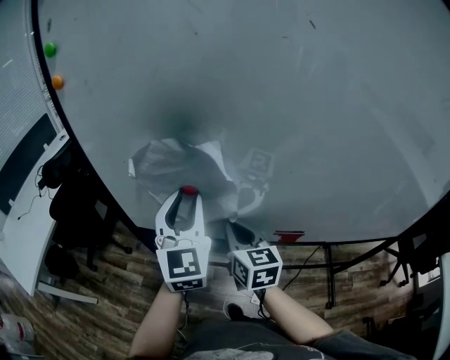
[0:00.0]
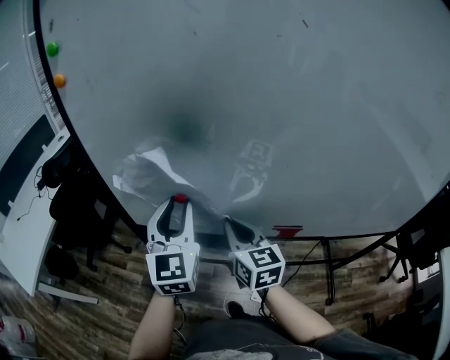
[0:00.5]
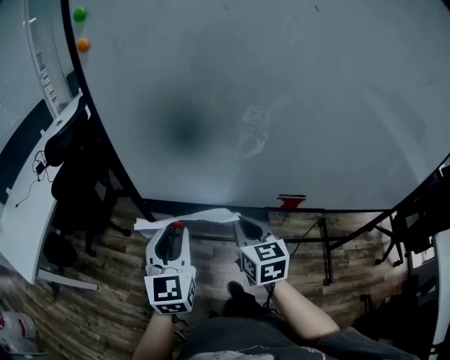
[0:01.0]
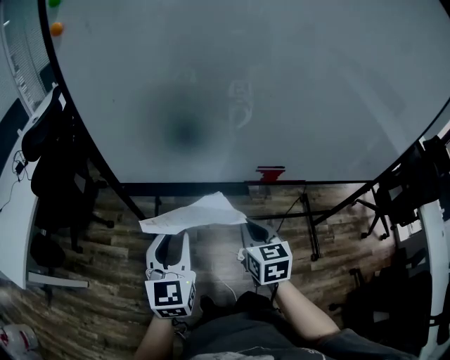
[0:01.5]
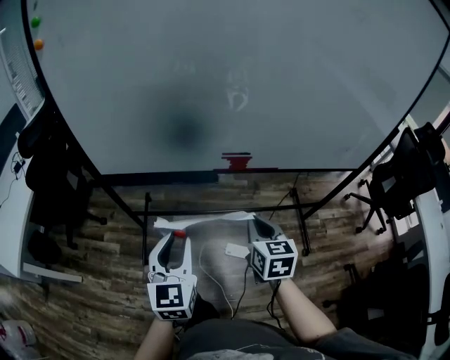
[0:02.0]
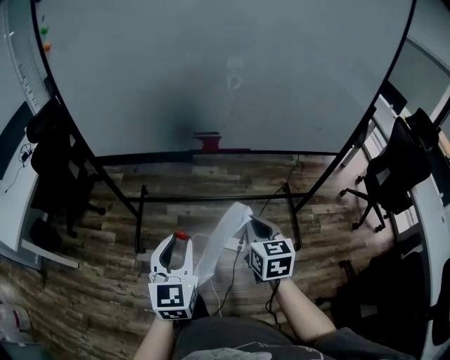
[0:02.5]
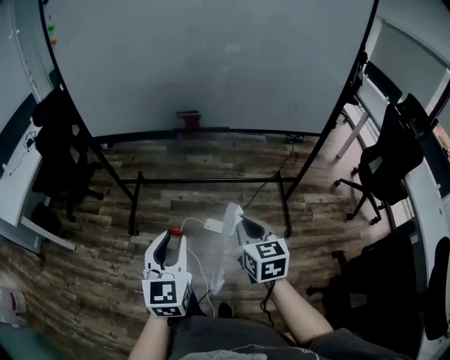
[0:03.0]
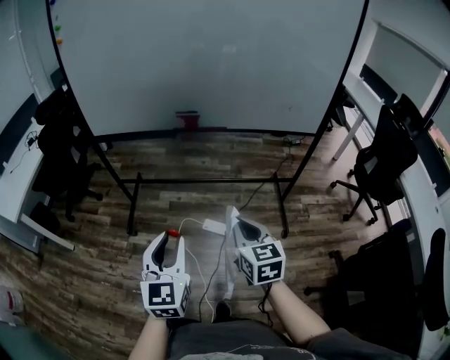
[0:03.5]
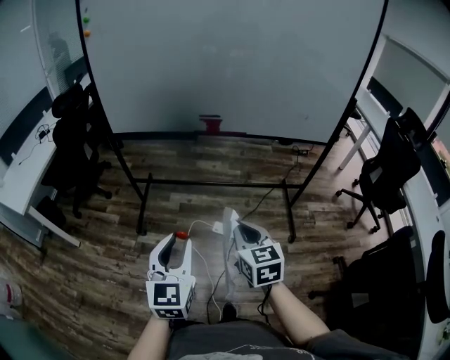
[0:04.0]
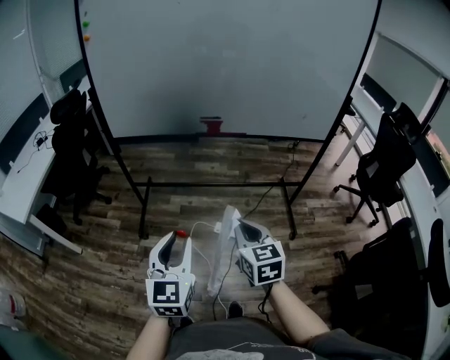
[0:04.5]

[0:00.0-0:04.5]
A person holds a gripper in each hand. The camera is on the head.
0:00.0 to 0:02.0: The right gripper travels backward and to the right by roughly 30 cm, and turns by some 20 degrees. Meanwhile the left gripper moves backward and downward, approximately 30 cm, and turns by some 20 degrees.
0:02.0 to 0:04.5: Both grippers travel together backward, roughly 30 cm.

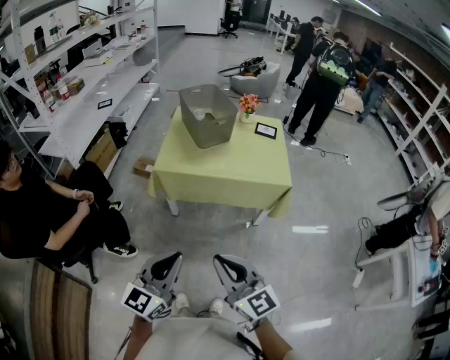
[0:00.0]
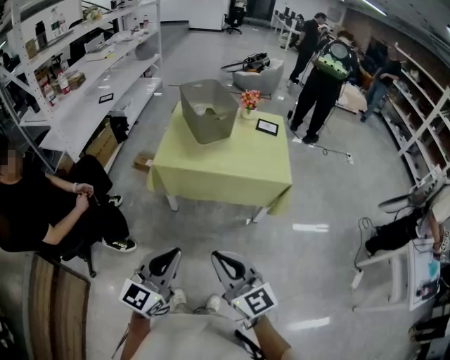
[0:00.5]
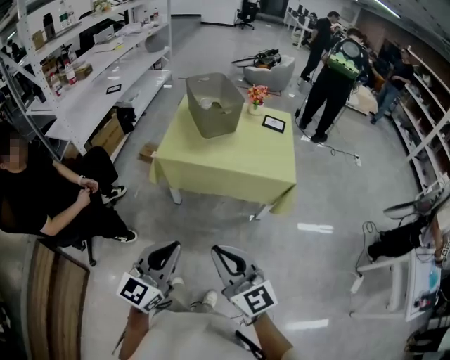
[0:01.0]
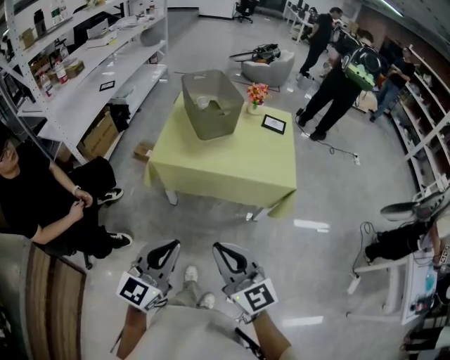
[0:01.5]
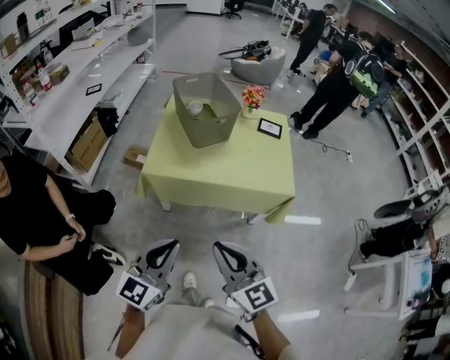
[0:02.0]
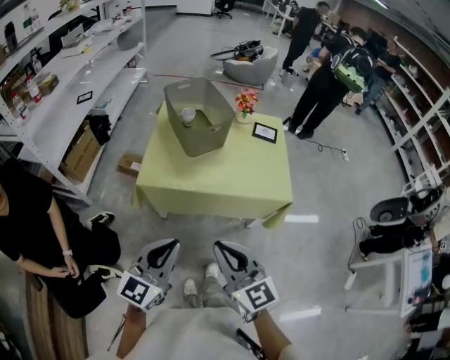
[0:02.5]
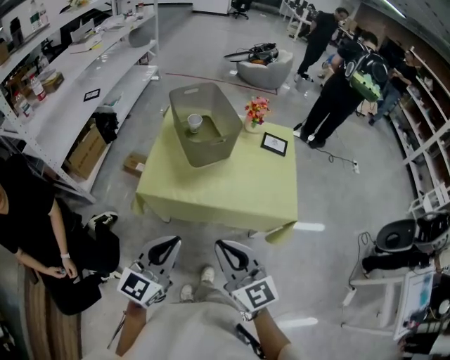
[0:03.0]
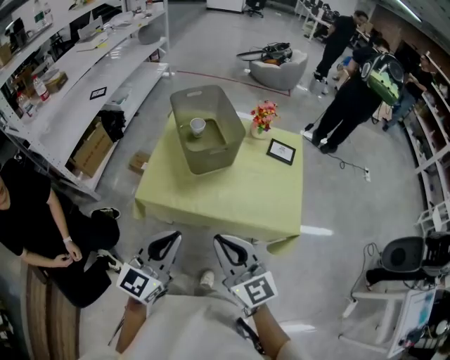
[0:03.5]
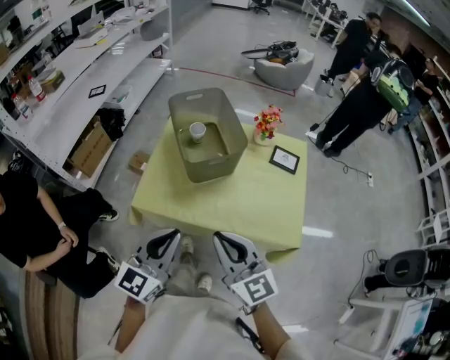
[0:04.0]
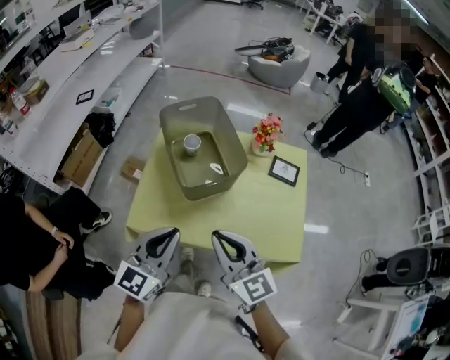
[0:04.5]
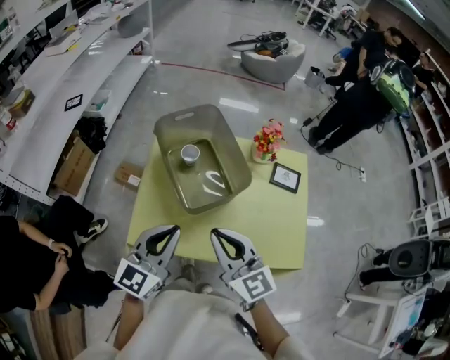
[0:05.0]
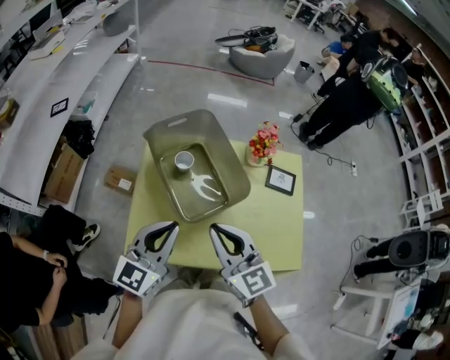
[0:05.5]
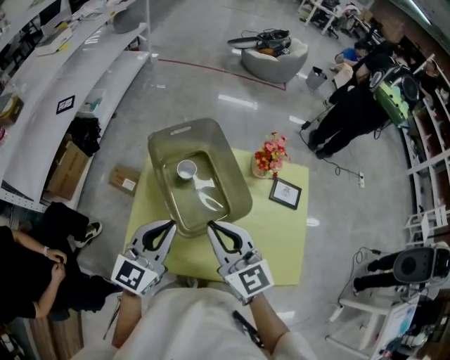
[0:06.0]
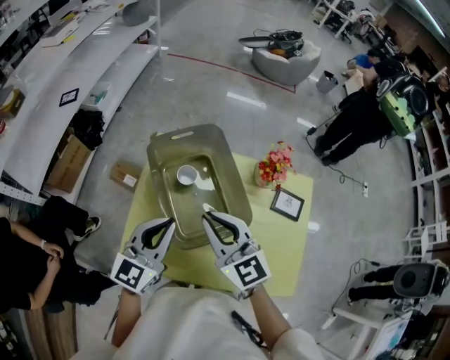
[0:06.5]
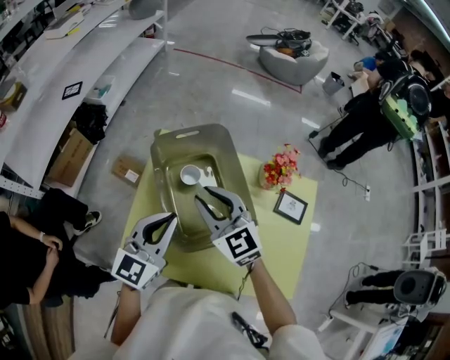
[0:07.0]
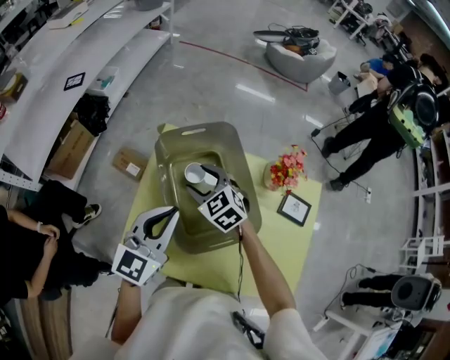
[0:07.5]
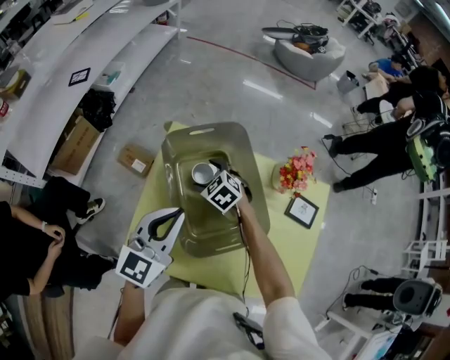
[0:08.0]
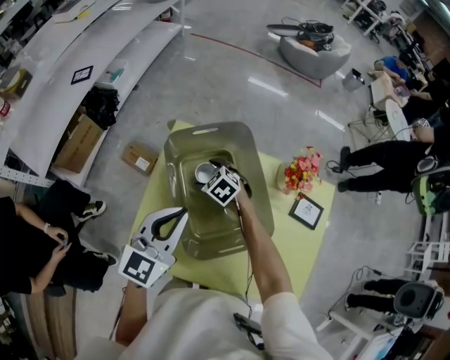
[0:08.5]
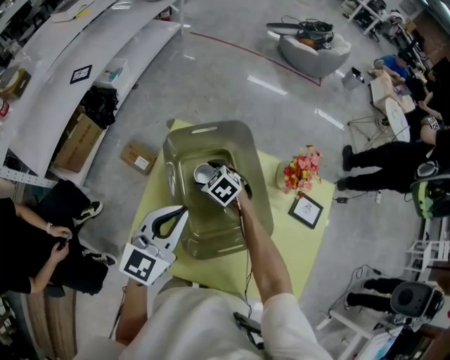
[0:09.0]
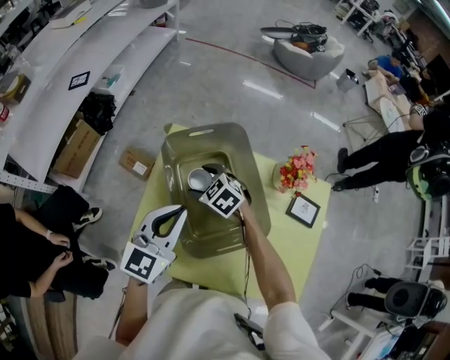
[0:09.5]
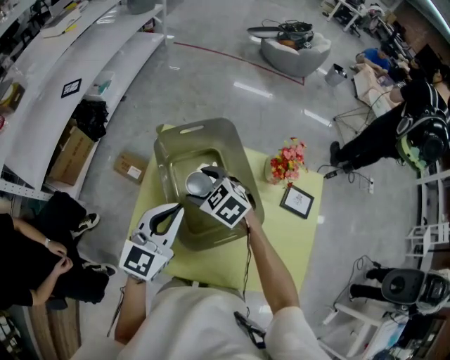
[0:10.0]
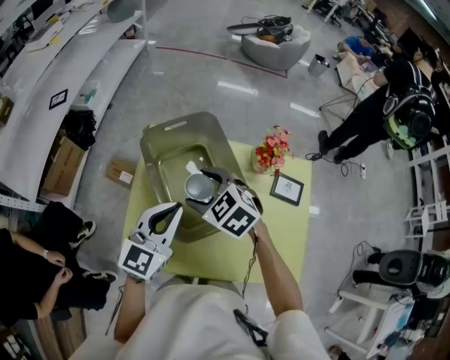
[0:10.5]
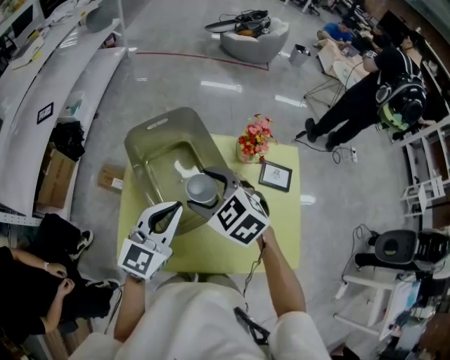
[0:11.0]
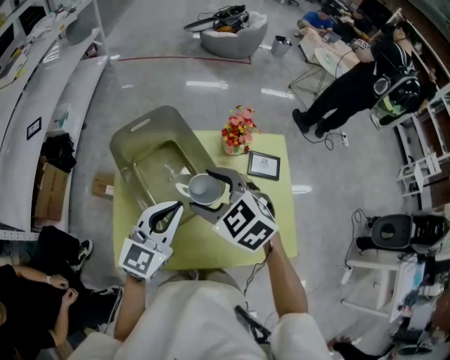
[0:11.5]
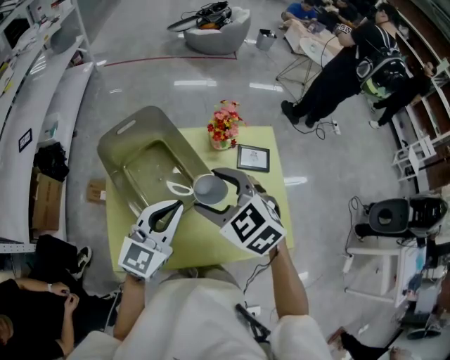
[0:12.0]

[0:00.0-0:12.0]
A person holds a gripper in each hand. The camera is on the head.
0:00.0 to 0:02.0: The two grippers go roughly 15 cm forward.
0:02.0 to 0:04.0: The grippers both shift forward by approximately 30 cm.
0:04.0 to 0:06.0: Both grippers travel together forward, about 30 cm.
0:06.0 to 0:08.0: The right gripper moves downward and forward, approximately 35 cm, tilts its fingers some 50 degrees downward, and opens. Meanwhile the left gripper is displaced forward by approximately 10 cm.
0:08.0 to 0:10.0: The right gripper heads upward and backward, covering some 10 cm.
0:10.0 to 0:12.0: The left gripper travels to the right and backward by roughly 15 cm, and rotates about 20 degrees. Meanwhile the right gripper travels to the right, upward and backward by roughly 25 cm, and rotates roughly 20 degrees.

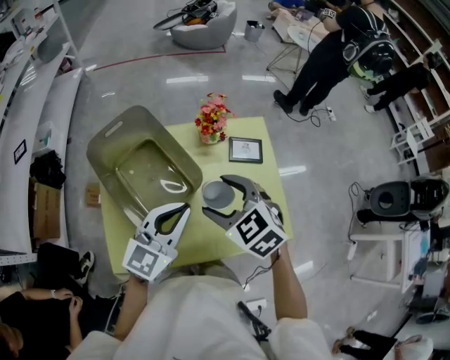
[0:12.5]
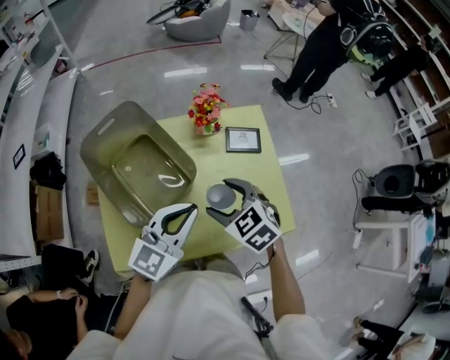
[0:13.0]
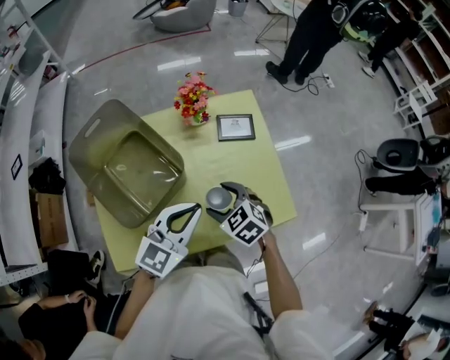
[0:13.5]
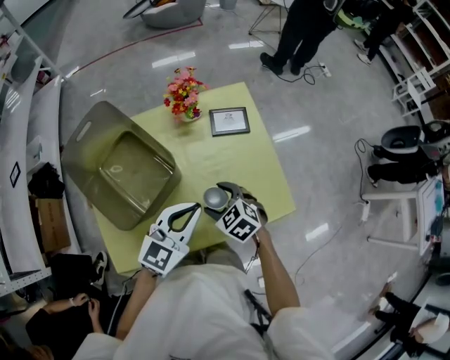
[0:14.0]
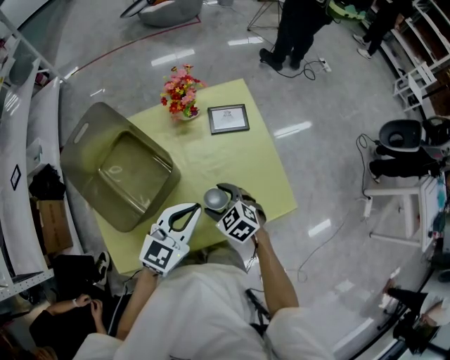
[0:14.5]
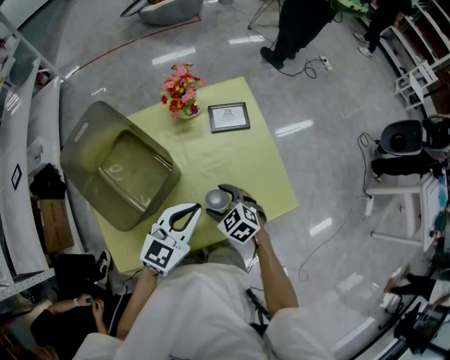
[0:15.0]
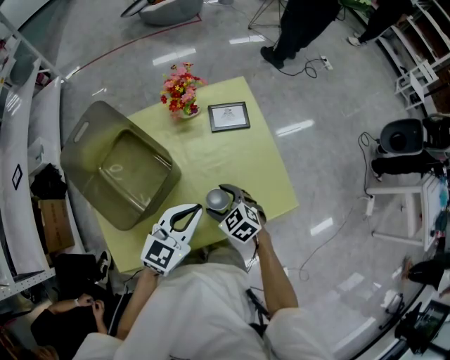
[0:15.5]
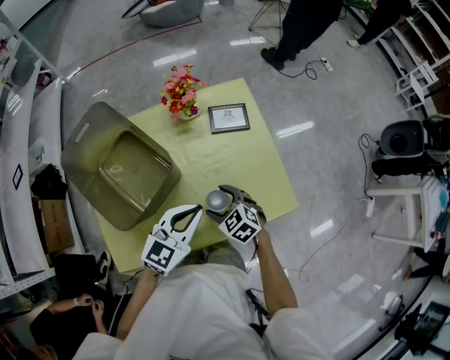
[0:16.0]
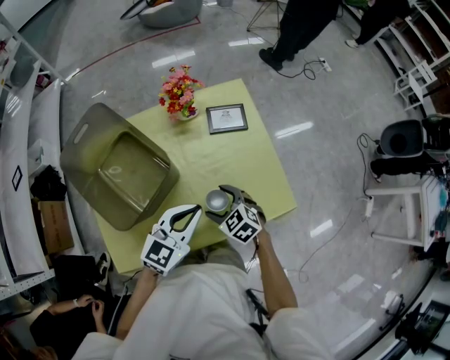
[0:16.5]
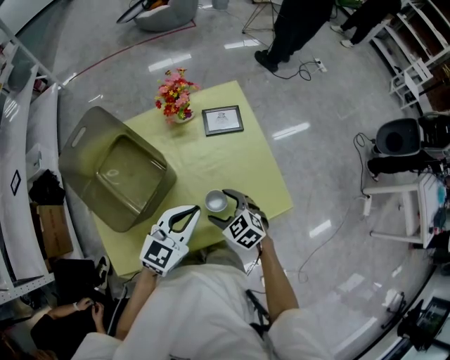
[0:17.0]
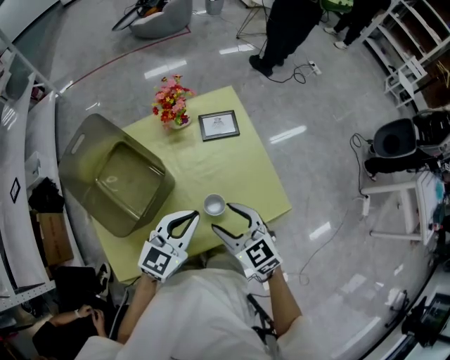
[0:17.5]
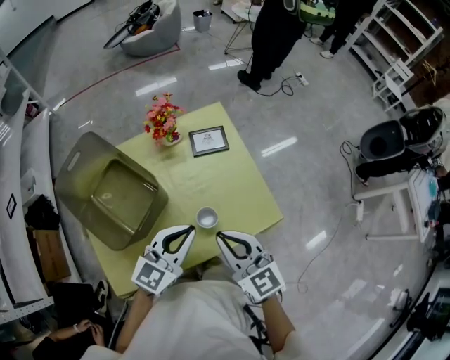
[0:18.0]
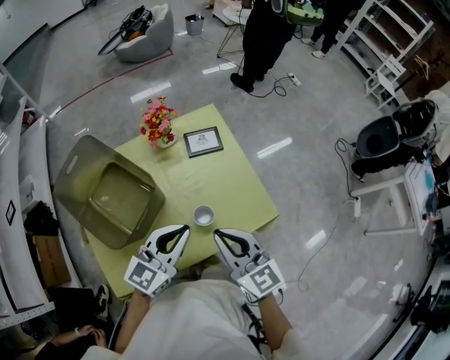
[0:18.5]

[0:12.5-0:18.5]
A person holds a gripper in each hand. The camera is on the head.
0:12.5 to 0:14.5: The left gripper moves downward and to the right, some 15 cm. The right gripper goes roughly 25 cm downward.
0:14.5 to 0:16.5: There are only small adjustments of the grippers.
0:16.5 to 0:18.5: The left gripper travels upward by some 10 cm, while the right gripper travels upward by approximately 25 cm, tilts its fingers roughly 40 degrees upward, and closes up.

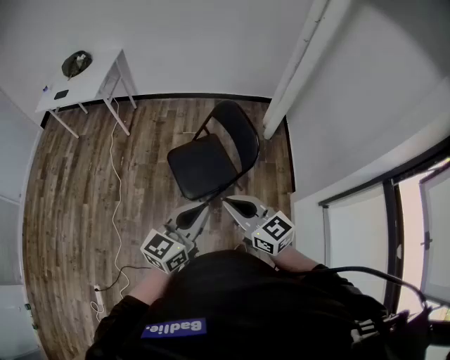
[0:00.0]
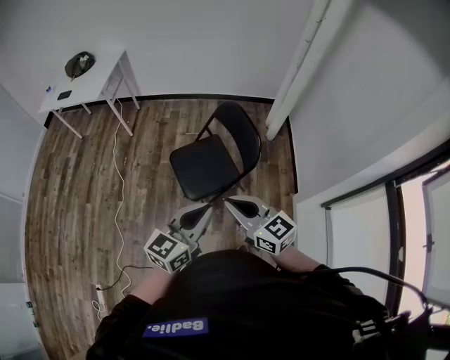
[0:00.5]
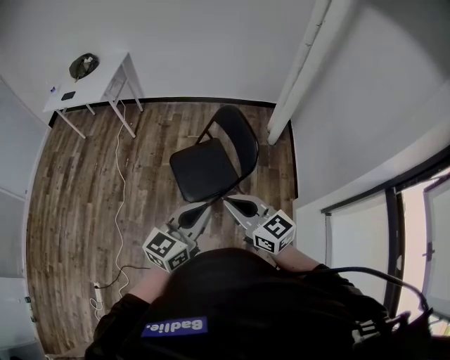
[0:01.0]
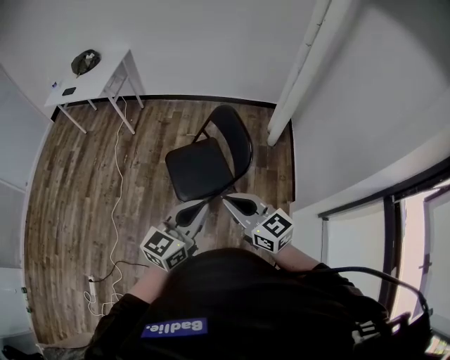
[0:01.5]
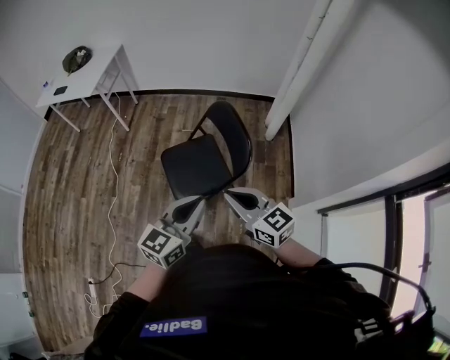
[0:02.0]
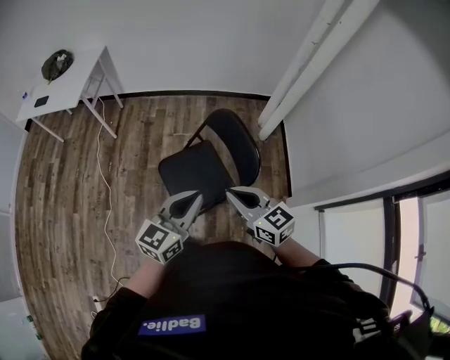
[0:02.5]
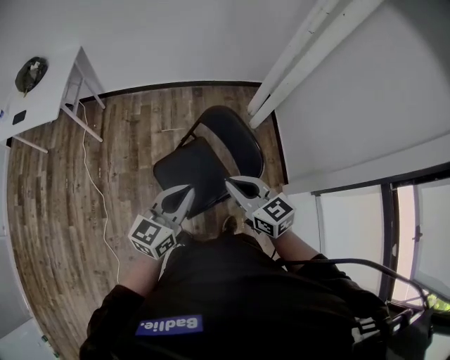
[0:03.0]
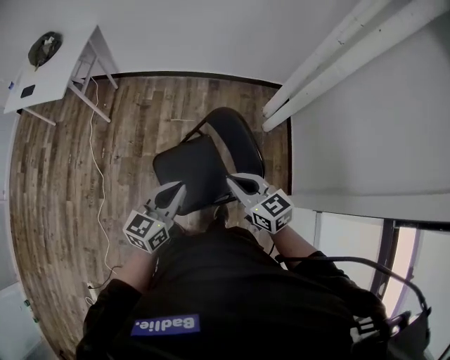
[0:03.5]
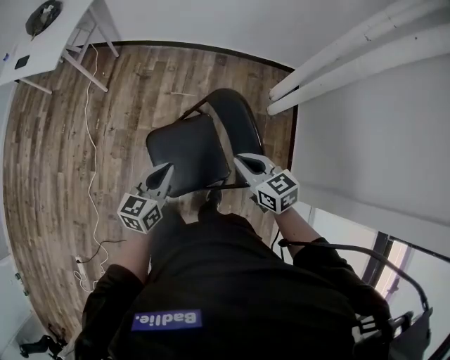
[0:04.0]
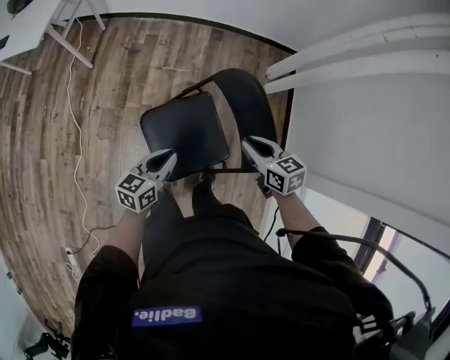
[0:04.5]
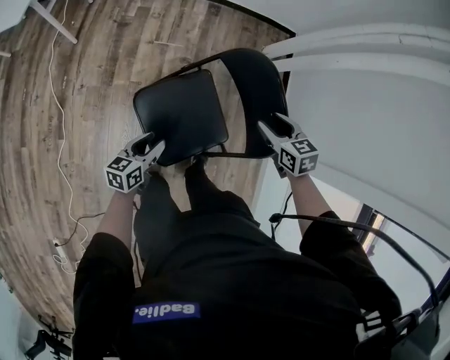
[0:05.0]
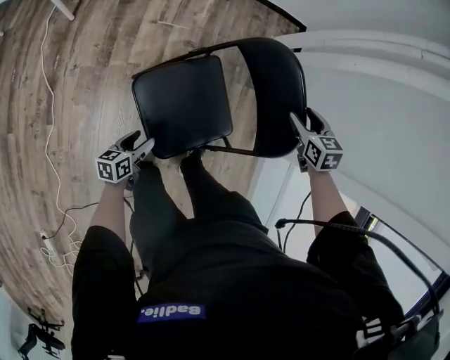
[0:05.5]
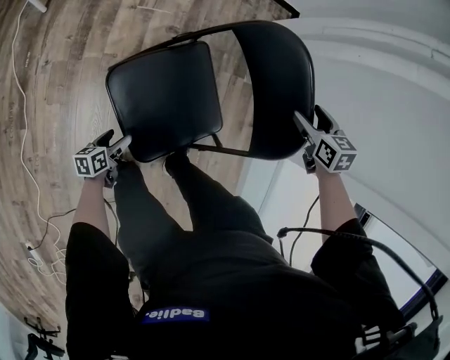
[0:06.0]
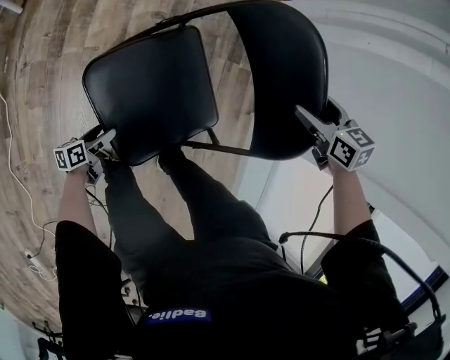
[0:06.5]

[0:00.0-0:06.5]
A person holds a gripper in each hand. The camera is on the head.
0:00.0 to 0:02.0: Both grippers move to the right and forward, roughly 10 cm.
0:02.0 to 0:04.5: The right gripper is displaced forward and downward by some 40 cm, and turns by approximately 30 degrees. The left gripper travels forward, downward and to the left by approximately 50 cm, and changes its angle by some 30 degrees.
0:04.5 to 0:06.5: The left gripper goes about 50 cm downward, rotates about 40 degrees, and opens, while the right gripper shifts approximately 20 cm downward, forward and to the right, rotates roughly 20 degrees, and opens up.
